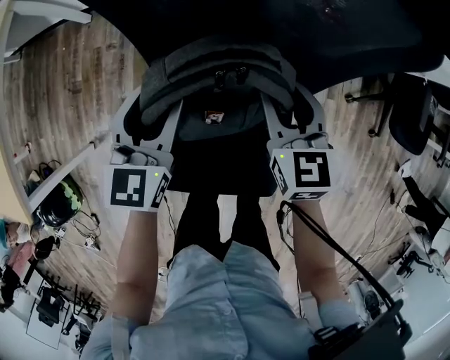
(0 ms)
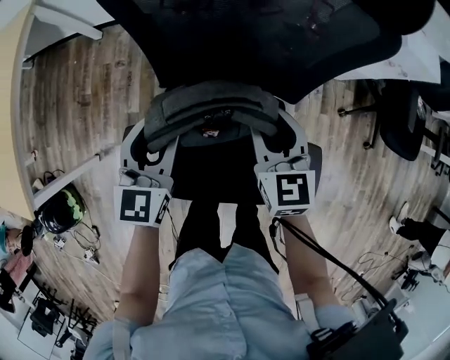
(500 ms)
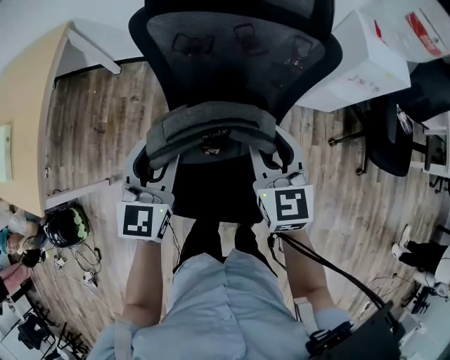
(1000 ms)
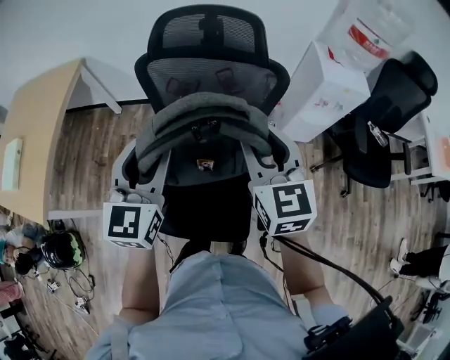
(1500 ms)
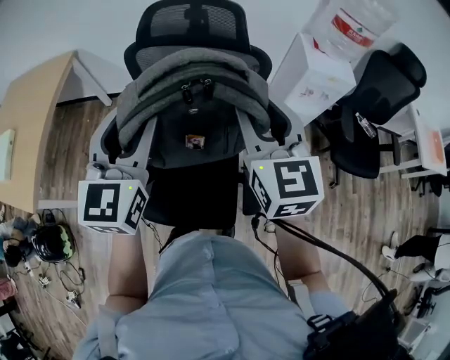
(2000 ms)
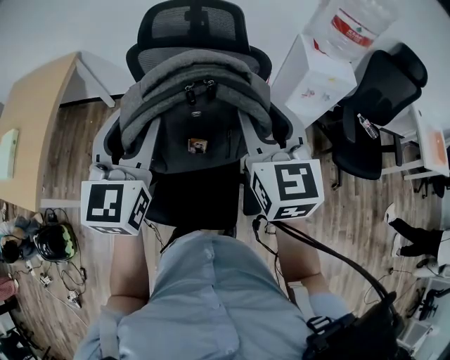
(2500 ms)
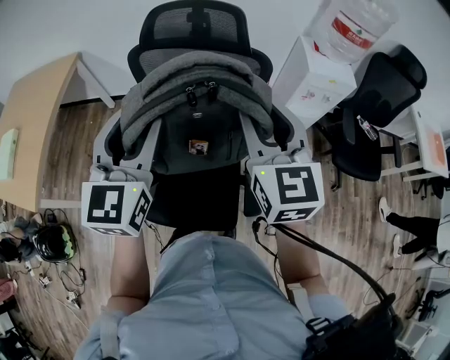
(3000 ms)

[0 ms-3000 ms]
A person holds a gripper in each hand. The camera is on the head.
0 ms to 1500 ms: The left gripper is displaced upward and backward by about 25 cm. The right gripper shifts about 25 cm upward, and turns by about 20 degrees.
1500 ms to 3000 ms: Both grippers move upward, approximately 5 cm.

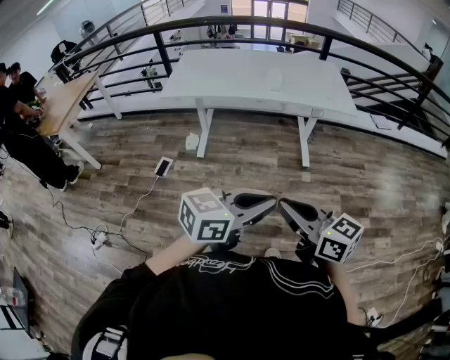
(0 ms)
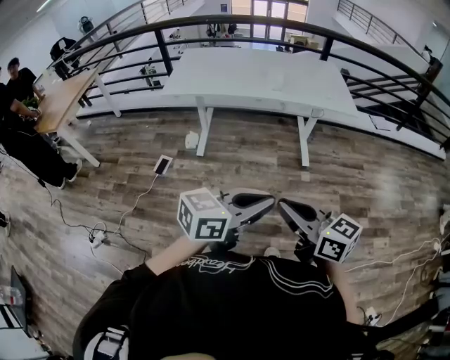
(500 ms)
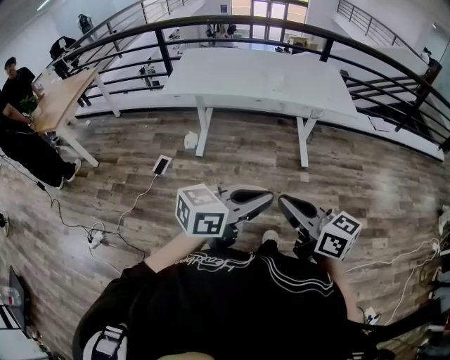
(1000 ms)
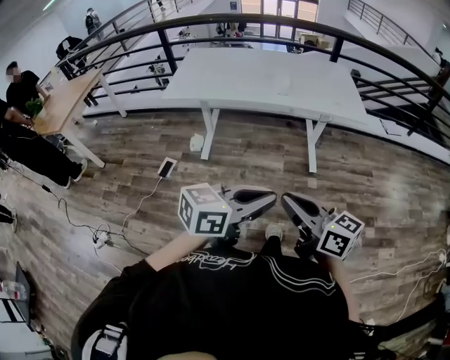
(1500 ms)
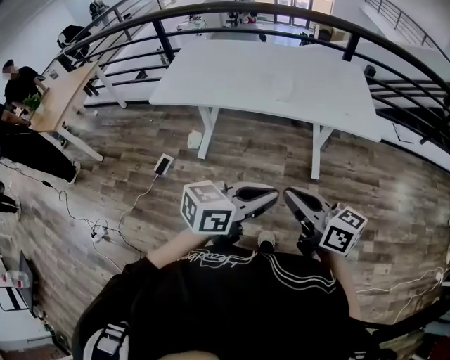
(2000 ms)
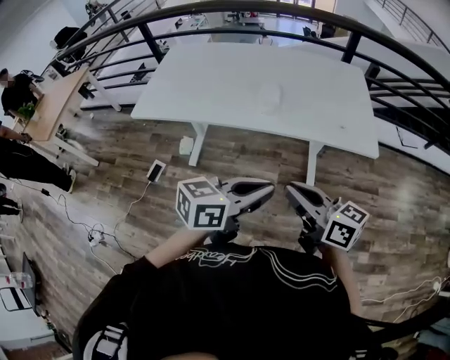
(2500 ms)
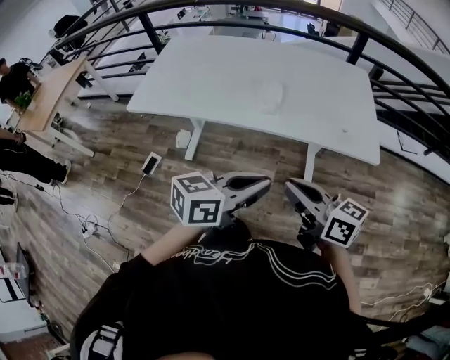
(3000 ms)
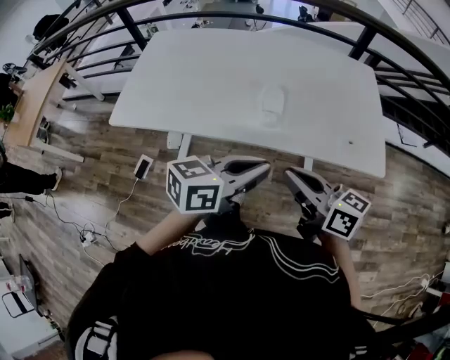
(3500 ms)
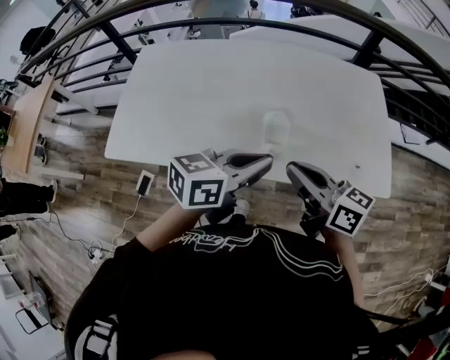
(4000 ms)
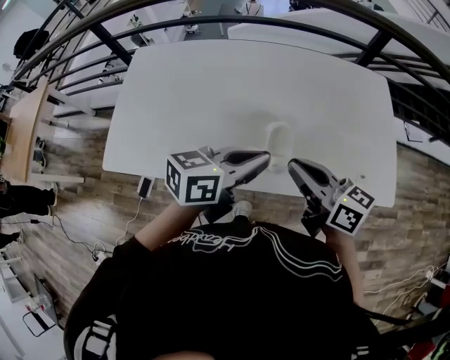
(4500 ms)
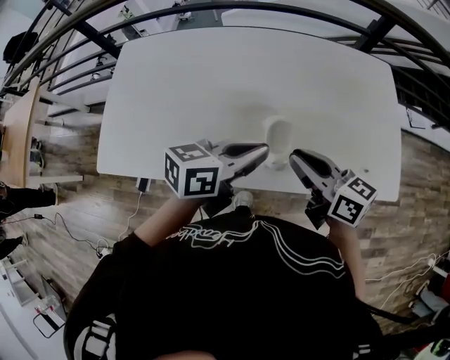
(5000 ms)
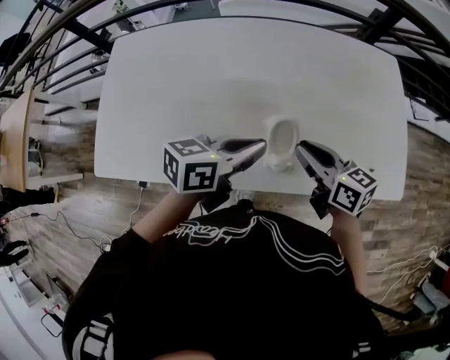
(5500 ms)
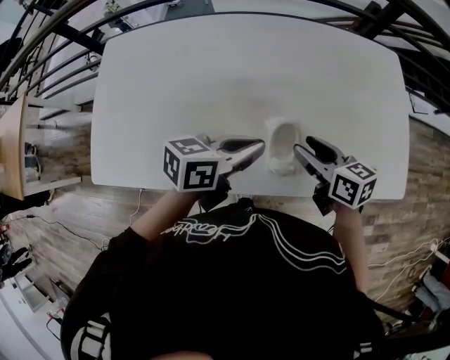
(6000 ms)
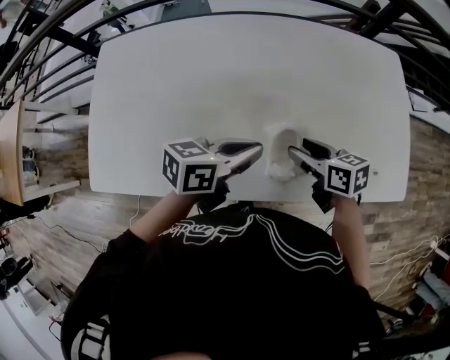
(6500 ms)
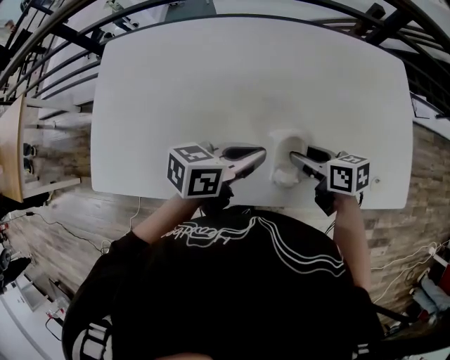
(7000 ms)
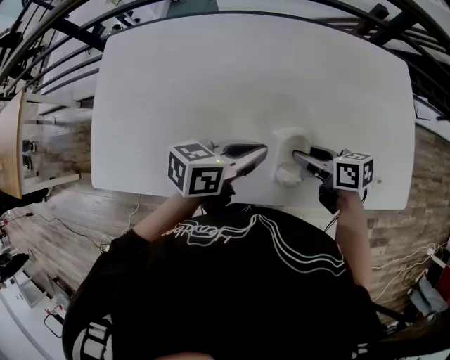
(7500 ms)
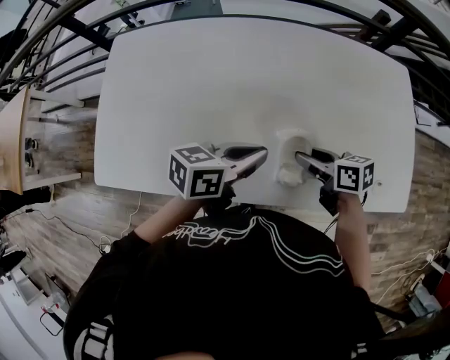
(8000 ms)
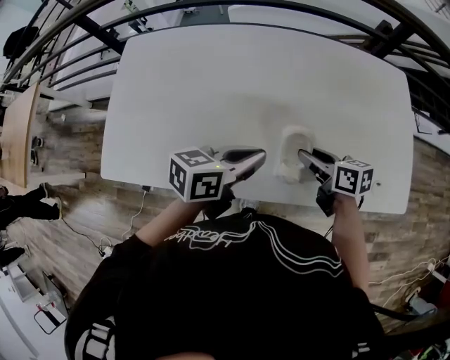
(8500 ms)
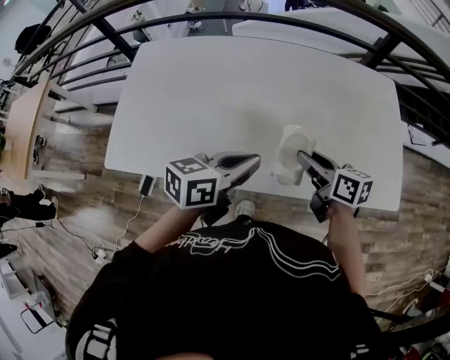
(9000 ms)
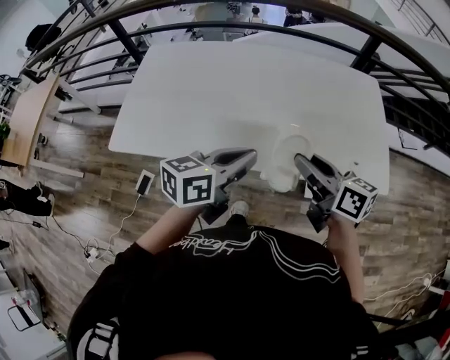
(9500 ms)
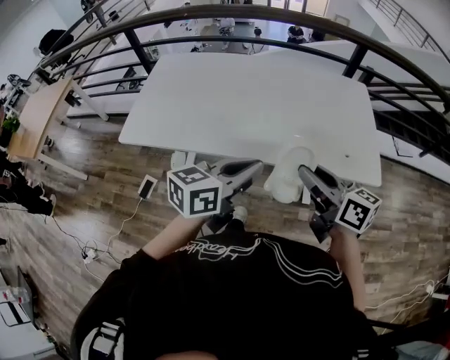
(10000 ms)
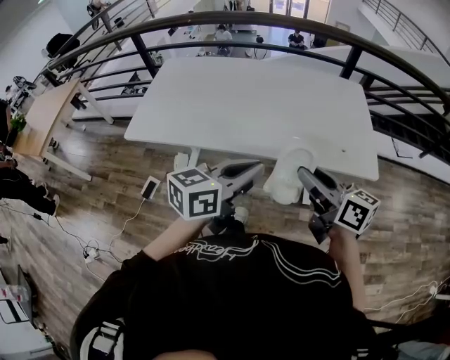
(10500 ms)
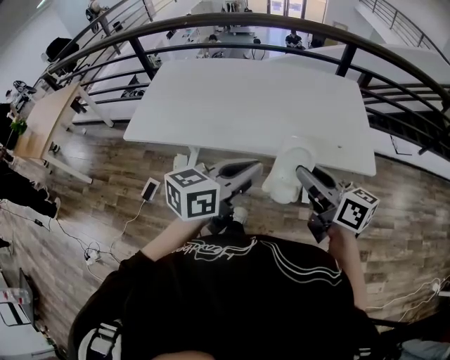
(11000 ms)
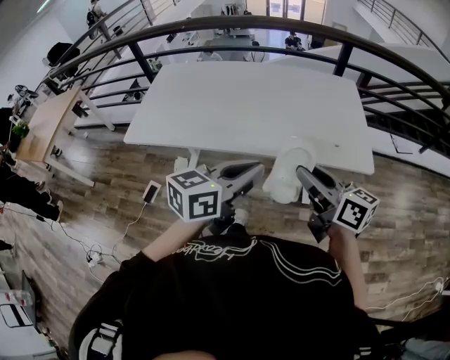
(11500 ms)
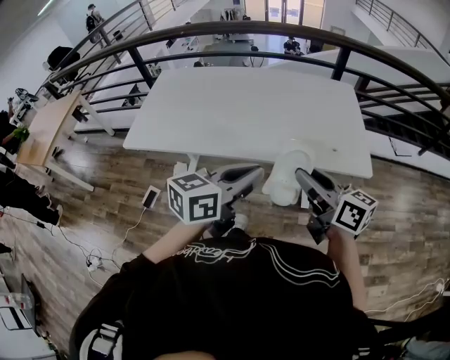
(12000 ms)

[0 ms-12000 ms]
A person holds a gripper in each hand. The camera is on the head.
0 ms to 2000 ms: Both grippers travel together forward, roughly 30 cm.
2000 ms to 4000 ms: The two grippers travel together, forward, about 50 cm.
4000 ms to 6000 ms: The right gripper goes about 20 cm forward and downward, turns by roughly 20 degrees, and opens up. The left gripper moves forward, downward and to the left, some 20 cm.
6000 ms to 8000 ms: The right gripper ends up approximately 5 cm from where it was.
8000 ms to 10000 ms: The left gripper moves about 40 cm, and rotates some 20 degrees. The right gripper ends up roughly 40 cm from where it was, and changes its angle by roughly 30 degrees.
10000 ms to 12000 ms: The grippers both shift to the right and backward by approximately 10 cm.

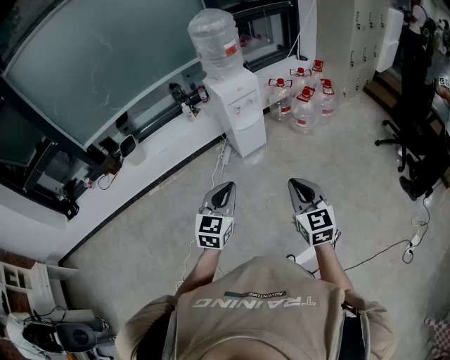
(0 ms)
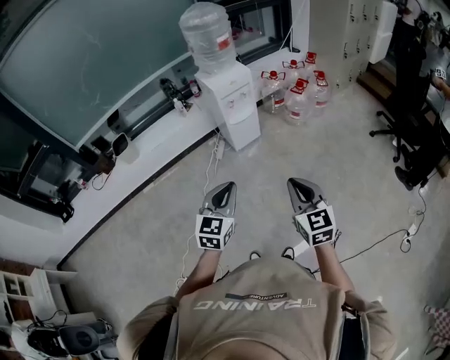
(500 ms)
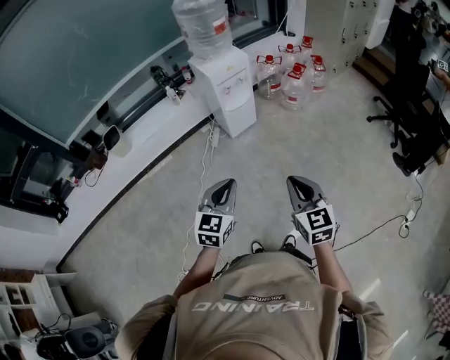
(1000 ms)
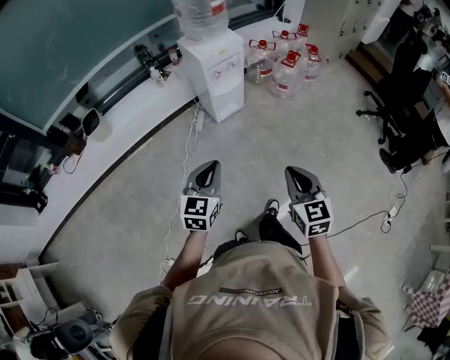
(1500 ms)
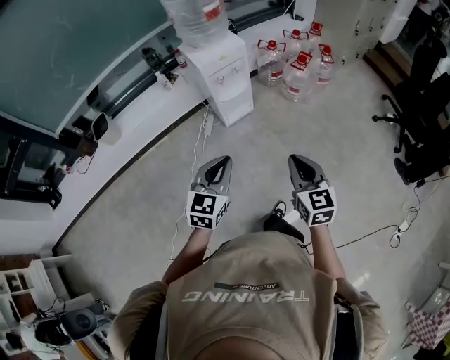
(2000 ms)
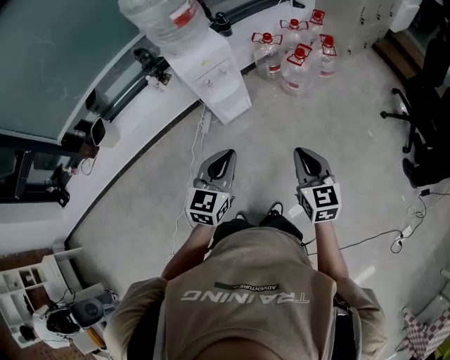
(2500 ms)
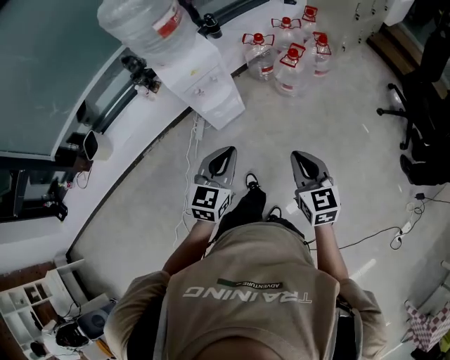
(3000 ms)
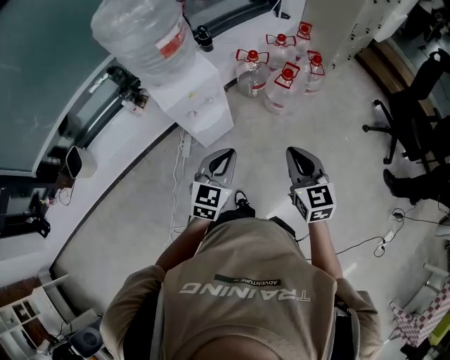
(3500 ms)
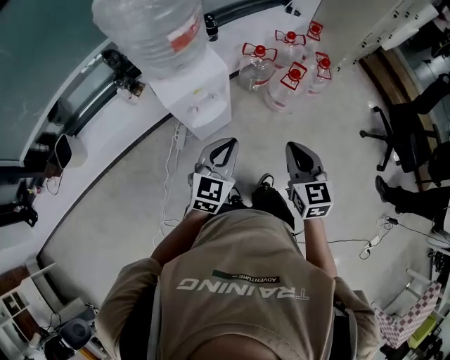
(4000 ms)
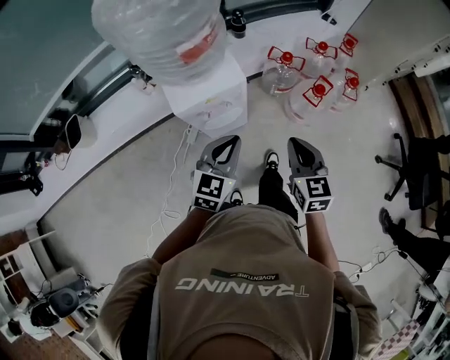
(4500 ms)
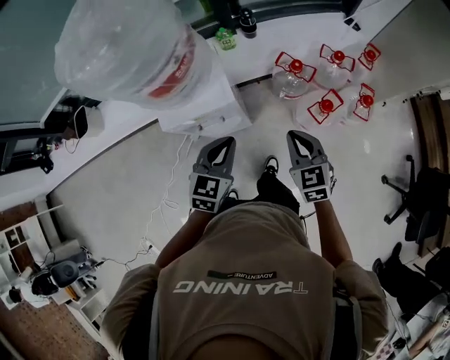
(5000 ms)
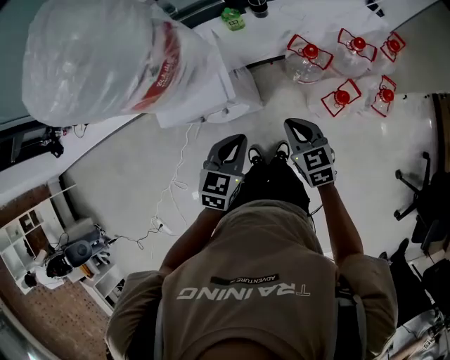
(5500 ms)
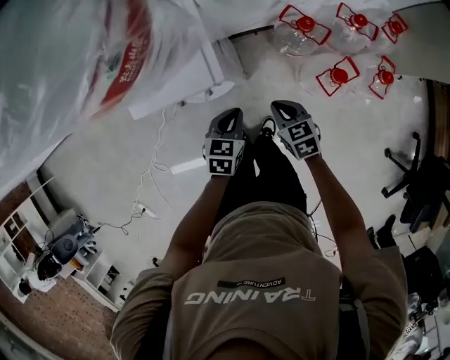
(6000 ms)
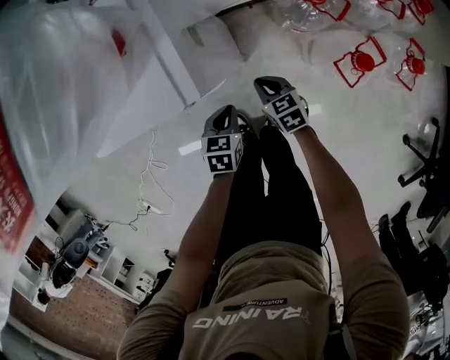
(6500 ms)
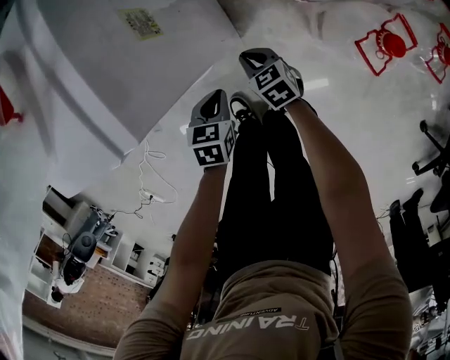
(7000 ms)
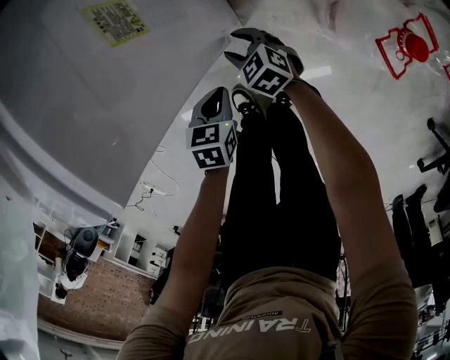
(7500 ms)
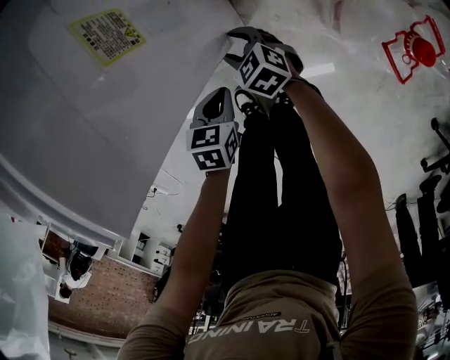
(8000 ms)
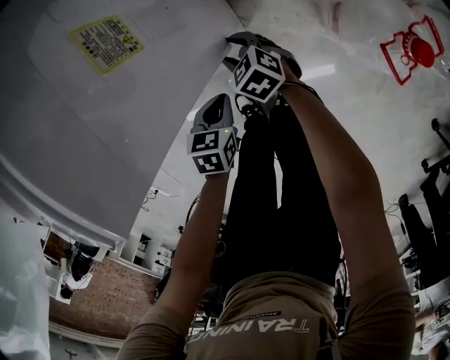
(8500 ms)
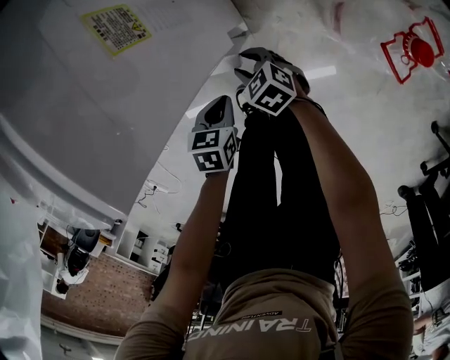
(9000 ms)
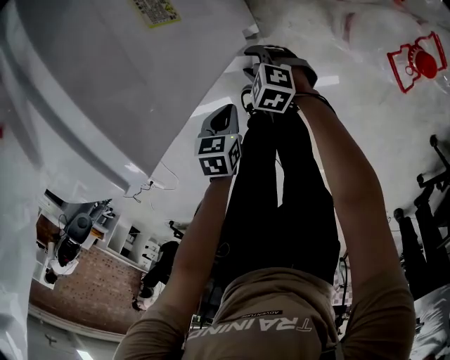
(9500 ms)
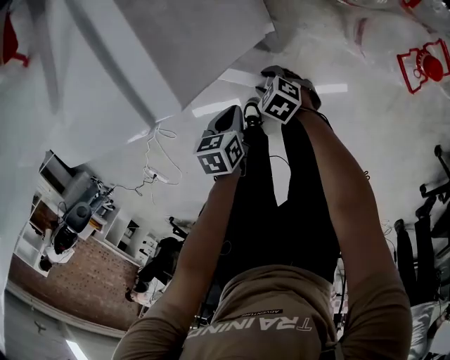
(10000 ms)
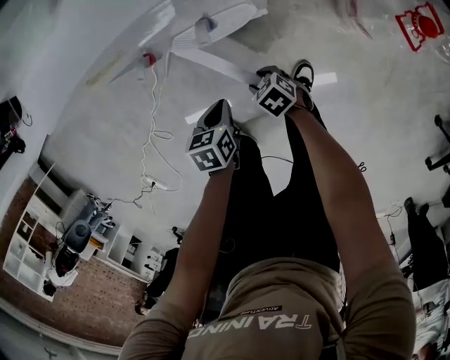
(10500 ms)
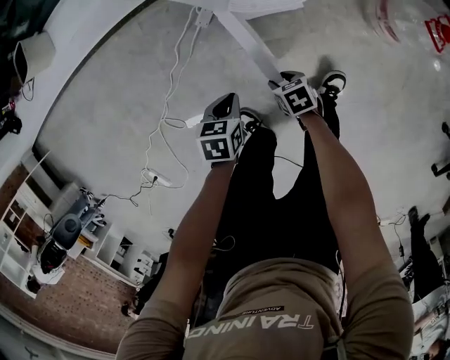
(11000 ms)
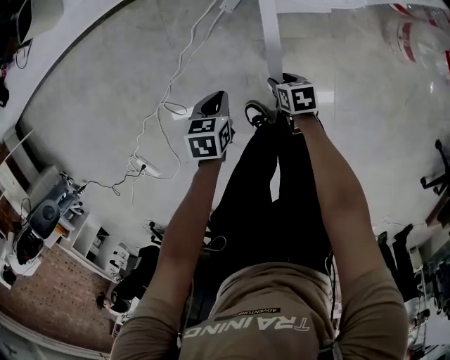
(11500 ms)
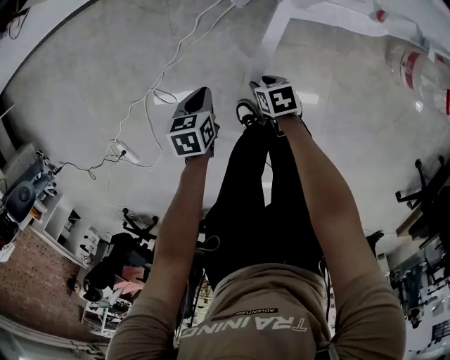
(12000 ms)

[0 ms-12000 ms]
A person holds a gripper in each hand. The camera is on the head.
0 ms to 2000 ms: The grippers both shift forward by roughly 15 cm.
2000 ms to 4000 ms: The two grippers go roughly 35 cm forward.
4000 ms to 6000 ms: Both grippers travel together downward, about 30 cm. The right gripper rotates approximately 50 degrees. Meanwhile the left gripper rotates roughly 40 degrees.
6000 ms to 8000 ms: Both grippers move downward, some 30 cm. The right gripper swivels approximately 20 degrees, and opens; the left gripper turns by approximately 20 degrees.
8000 ms to 10000 ms: The right gripper travels backward and to the left by about 15 cm, while the left gripper is displaced to the left and backward by roughly 10 cm.
10000 ms to 12000 ms: Both grippers travel together to the left, some 40 cm. The right gripper changes its angle by roughly 30 degrees.
